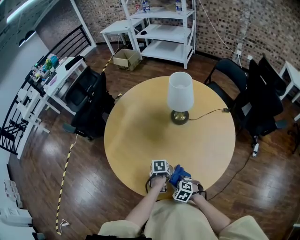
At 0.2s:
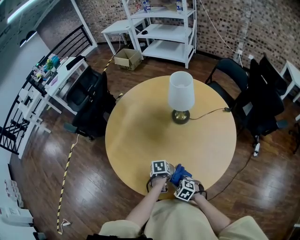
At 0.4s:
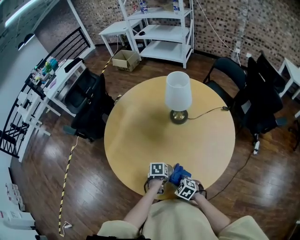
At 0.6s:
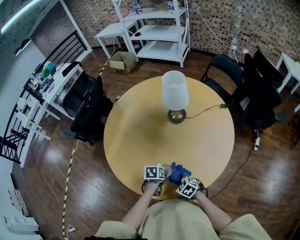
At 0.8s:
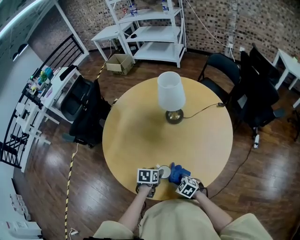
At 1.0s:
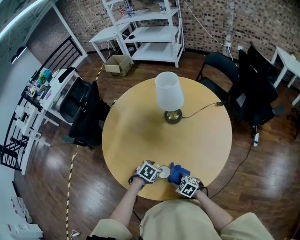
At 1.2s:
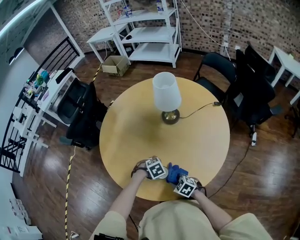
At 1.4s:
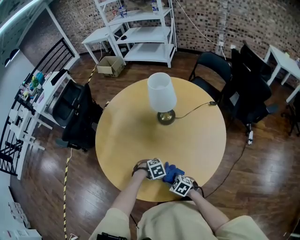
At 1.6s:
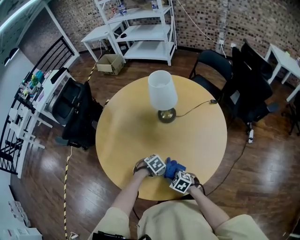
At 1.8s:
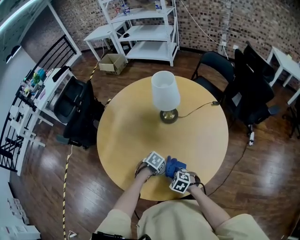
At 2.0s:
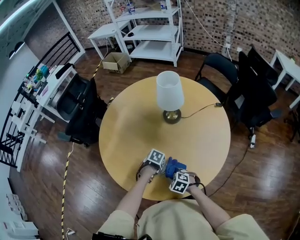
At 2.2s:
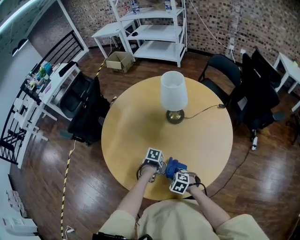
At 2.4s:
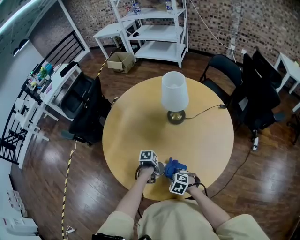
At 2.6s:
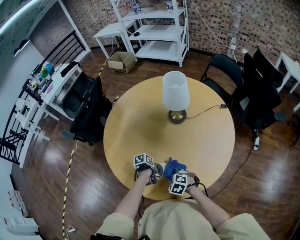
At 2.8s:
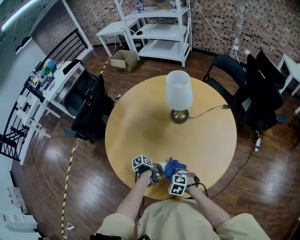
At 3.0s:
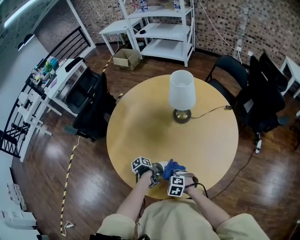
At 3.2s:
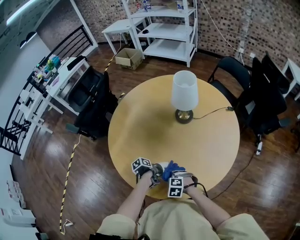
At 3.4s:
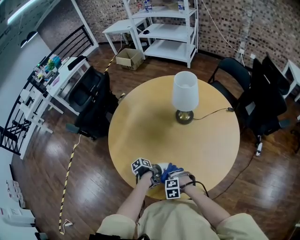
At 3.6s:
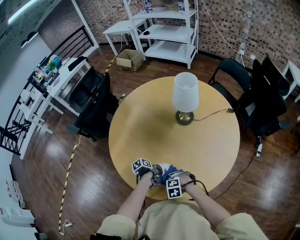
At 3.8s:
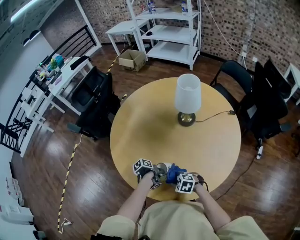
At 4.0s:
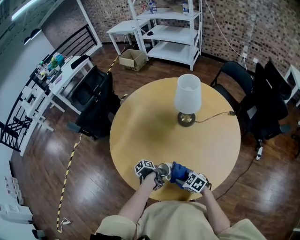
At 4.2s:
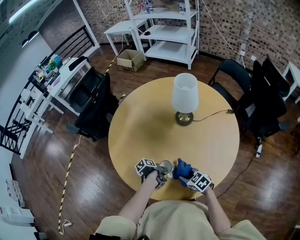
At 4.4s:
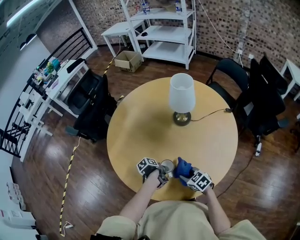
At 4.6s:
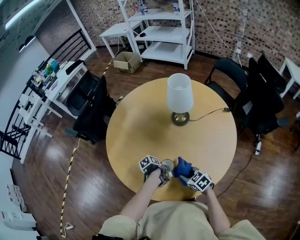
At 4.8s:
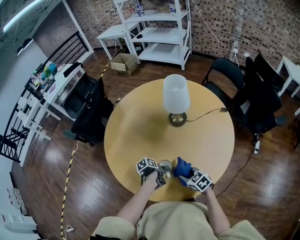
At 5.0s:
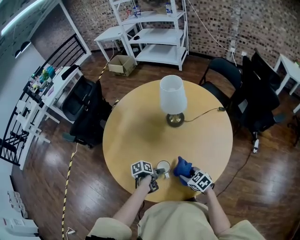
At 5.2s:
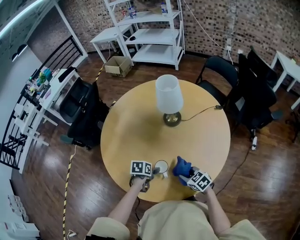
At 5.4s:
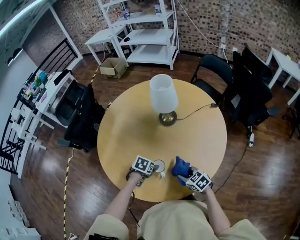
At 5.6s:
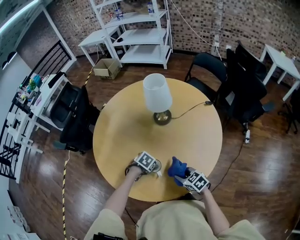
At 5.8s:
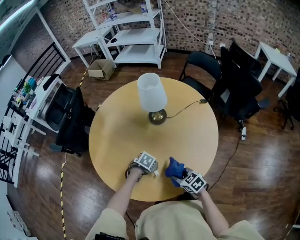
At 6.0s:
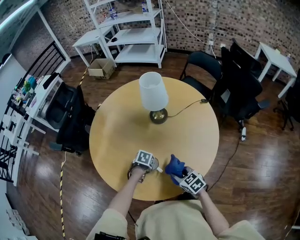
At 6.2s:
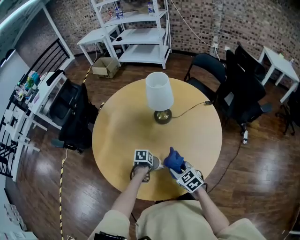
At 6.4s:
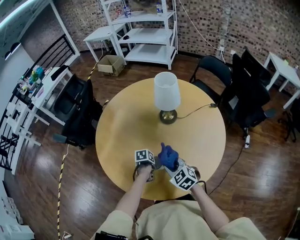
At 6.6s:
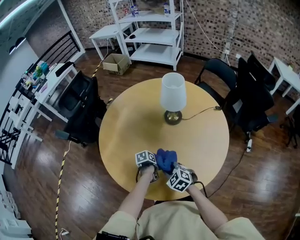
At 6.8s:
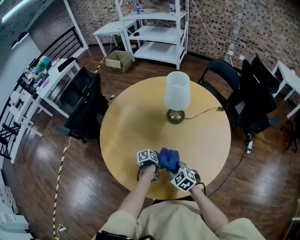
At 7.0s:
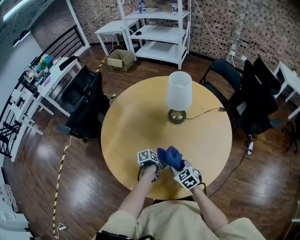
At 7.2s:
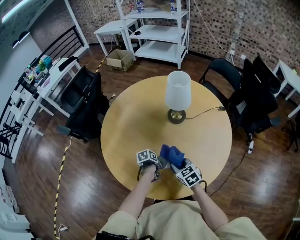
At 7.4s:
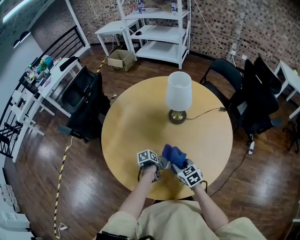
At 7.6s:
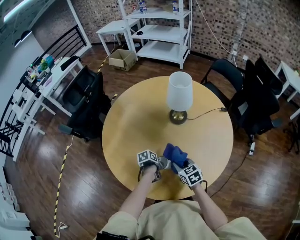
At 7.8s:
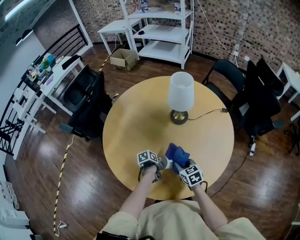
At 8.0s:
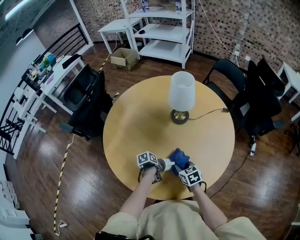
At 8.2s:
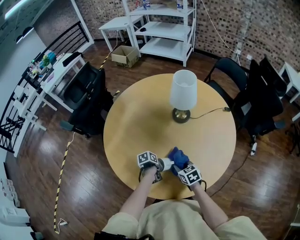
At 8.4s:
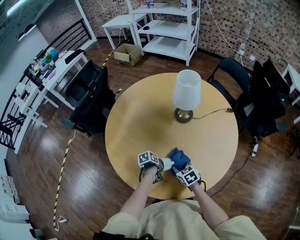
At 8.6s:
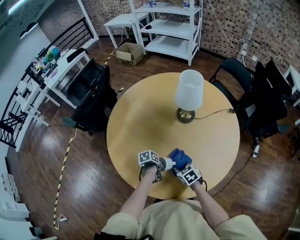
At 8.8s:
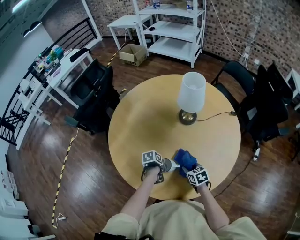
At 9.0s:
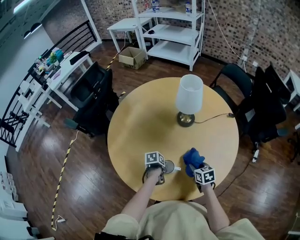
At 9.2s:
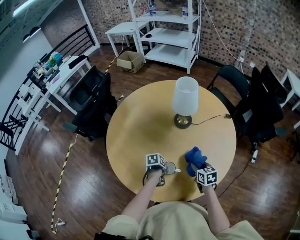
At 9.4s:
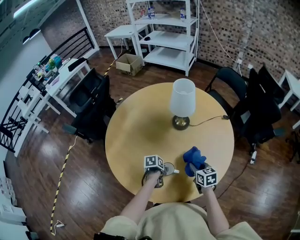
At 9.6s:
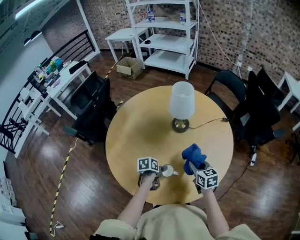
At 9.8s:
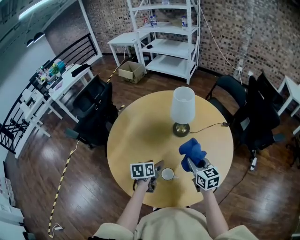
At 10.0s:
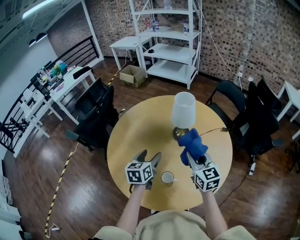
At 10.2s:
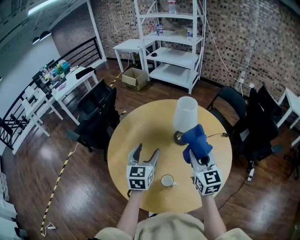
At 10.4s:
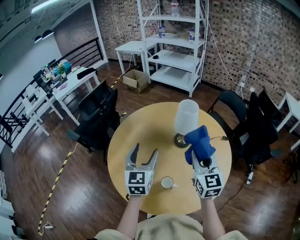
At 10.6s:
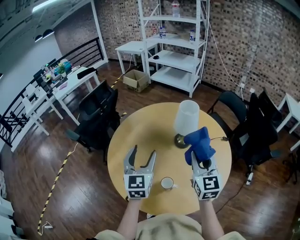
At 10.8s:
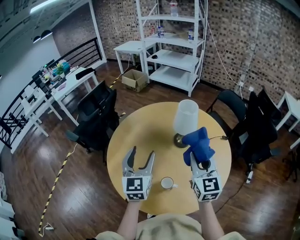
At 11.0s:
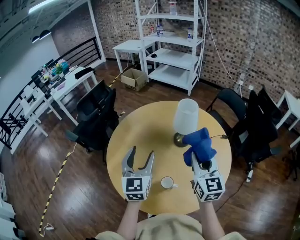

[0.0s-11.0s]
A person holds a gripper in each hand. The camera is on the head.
1.6s to 3.2s: The right gripper ends up roughly 5 cm from where it was, and changes its angle by some 30 degrees.
3.2s to 4.8s: The right gripper ends up some 15 cm from where it was, and rotates around the line of its fingers by about 40 degrees, clockwise from behind.
4.8s to 6.2s: The right gripper shifts approximately 5 cm upward.
6.2s to 7.8s: The right gripper changes place by some 5 cm.
7.8s to 9.4s: The right gripper goes downward and returns, about 5 cm each way.
9.4s to 11.0s: The right gripper moves upward, approximately 30 cm, and tips its fingers upward by about 30 degrees.

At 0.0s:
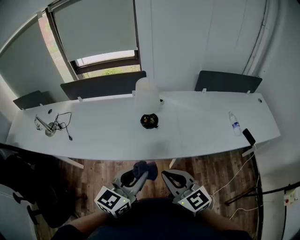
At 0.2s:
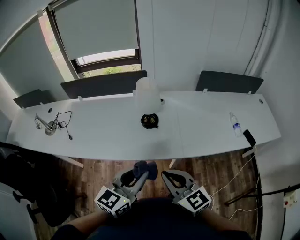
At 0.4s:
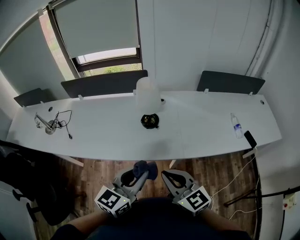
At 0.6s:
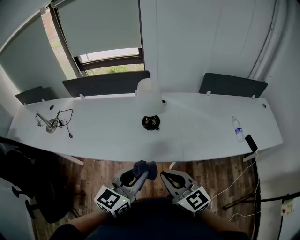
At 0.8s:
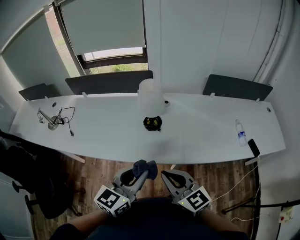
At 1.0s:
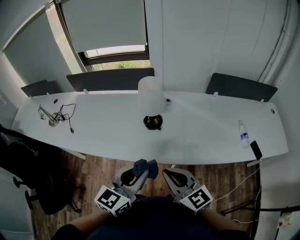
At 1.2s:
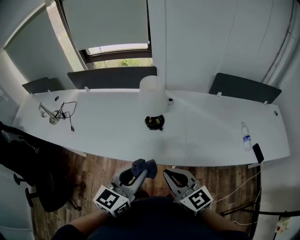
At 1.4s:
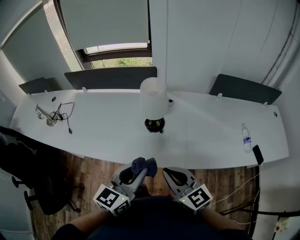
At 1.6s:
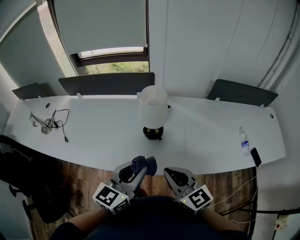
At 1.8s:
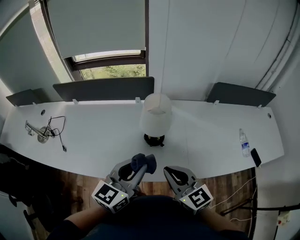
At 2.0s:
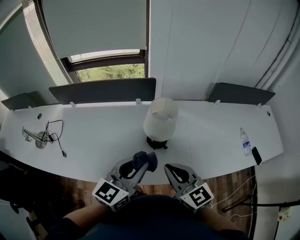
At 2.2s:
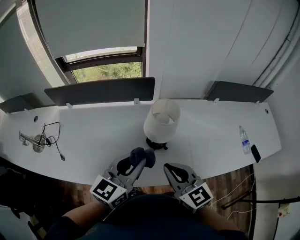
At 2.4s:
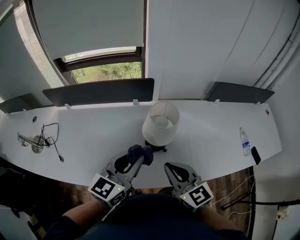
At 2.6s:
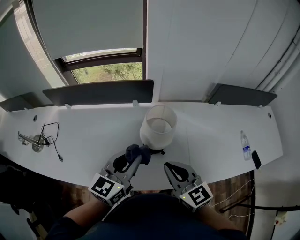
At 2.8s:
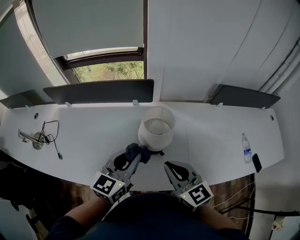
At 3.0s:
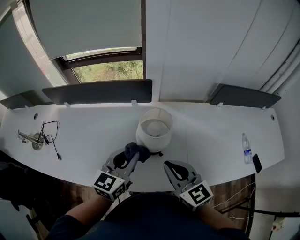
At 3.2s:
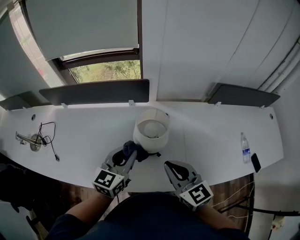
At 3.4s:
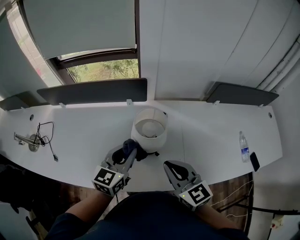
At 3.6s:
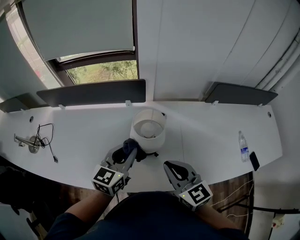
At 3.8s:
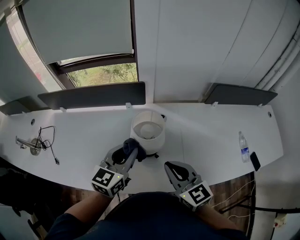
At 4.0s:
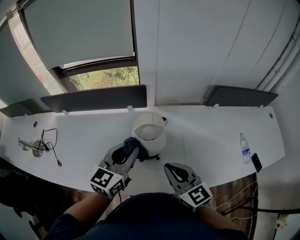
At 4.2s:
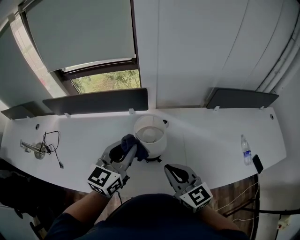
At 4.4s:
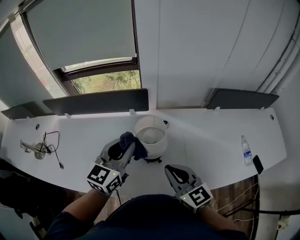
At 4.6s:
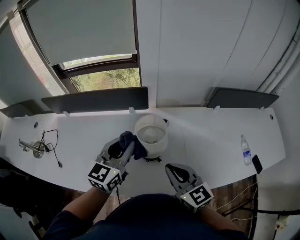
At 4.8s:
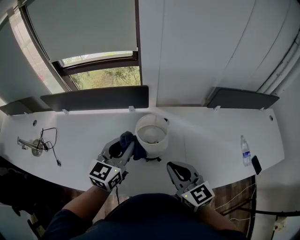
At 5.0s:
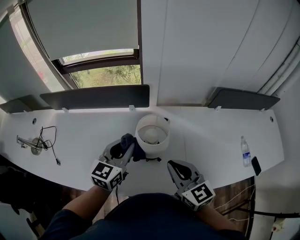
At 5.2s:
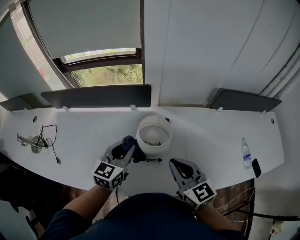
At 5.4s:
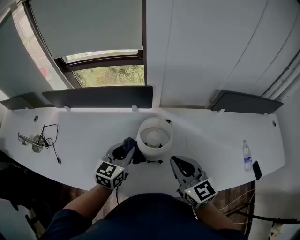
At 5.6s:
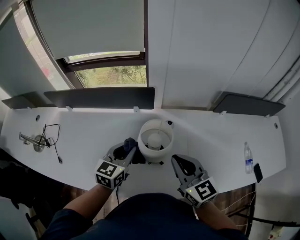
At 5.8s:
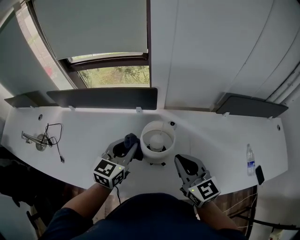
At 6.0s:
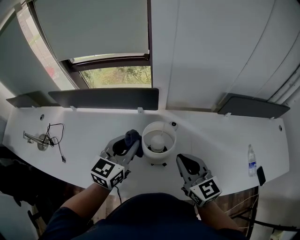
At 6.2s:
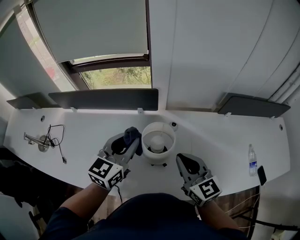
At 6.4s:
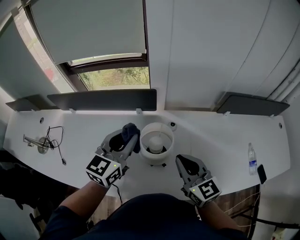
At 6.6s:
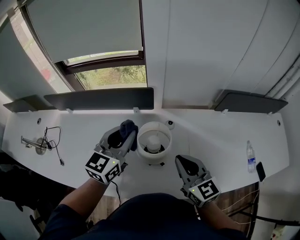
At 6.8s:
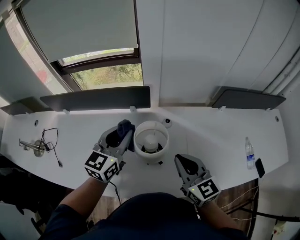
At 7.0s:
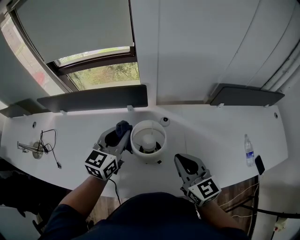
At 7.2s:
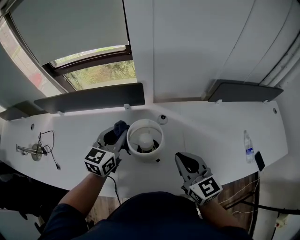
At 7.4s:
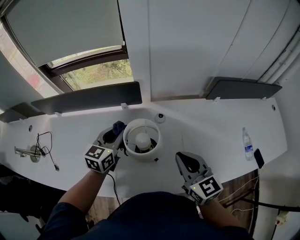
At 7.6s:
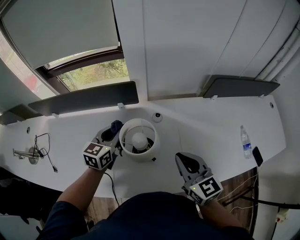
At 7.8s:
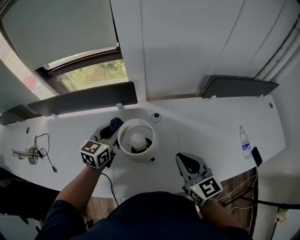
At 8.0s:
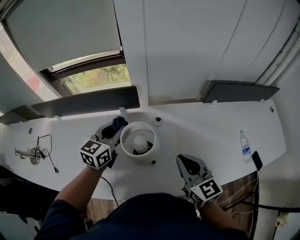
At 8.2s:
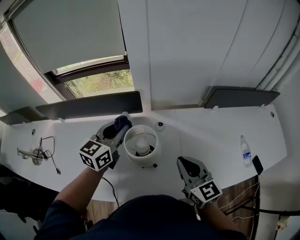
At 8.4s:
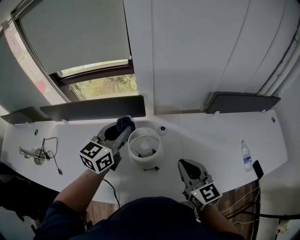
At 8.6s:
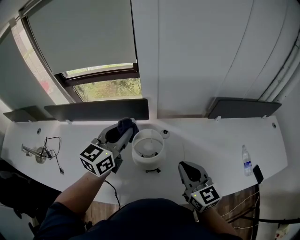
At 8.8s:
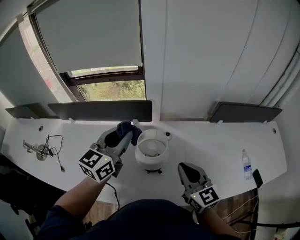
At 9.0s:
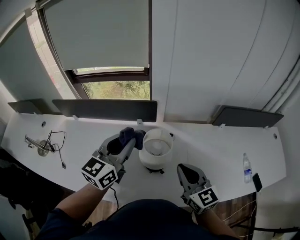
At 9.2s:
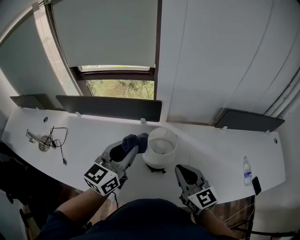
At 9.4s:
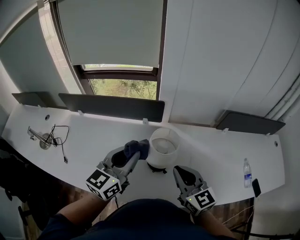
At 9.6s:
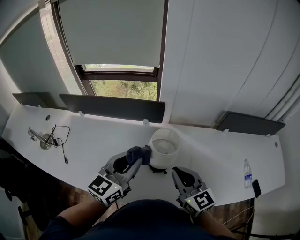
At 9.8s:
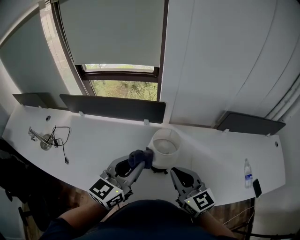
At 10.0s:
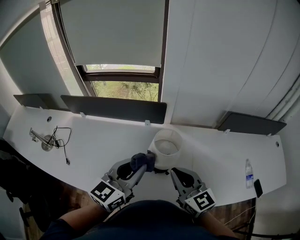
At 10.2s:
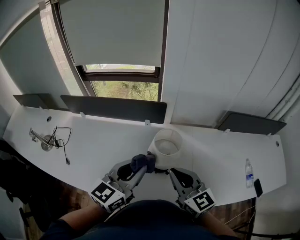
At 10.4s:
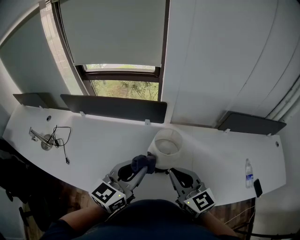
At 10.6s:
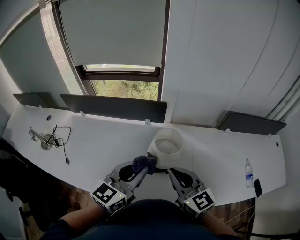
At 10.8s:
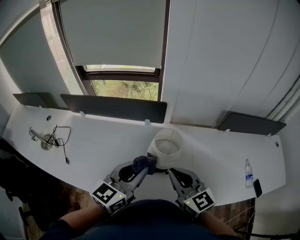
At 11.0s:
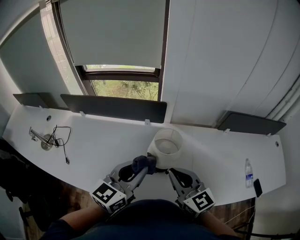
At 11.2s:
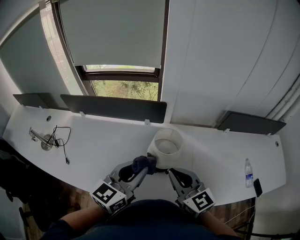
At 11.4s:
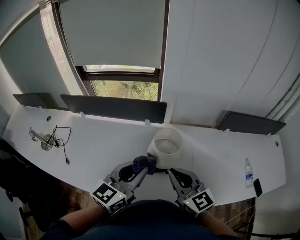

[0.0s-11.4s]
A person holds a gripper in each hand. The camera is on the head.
0.0s to 1.4s: The grippers both shift forward by some 10 cm.
1.4s to 2.8s: The grippers both shift forward by some 20 cm.
2.8s to 4.2s: The left gripper changes place by some 5 cm.
4.2s to 5.6s: The left gripper travels downward by roughly 10 cm. The right gripper moves forward, some 5 cm.
5.6s to 7.2s: The left gripper moves forward, about 5 cm, and travels upward and back again, roughly 10 cm each way. Meanwhile the right gripper ends up some 5 cm from where it was.
7.2s to 8.6s: The left gripper goes about 10 cm upward.
8.6s to 10.0s: The left gripper goes about 15 cm backward; the right gripper moves to the left, about 10 cm.
10.0s to 11.4s: The grippers stay close to where they were, moving slightly.

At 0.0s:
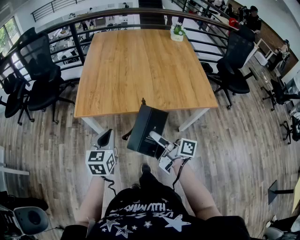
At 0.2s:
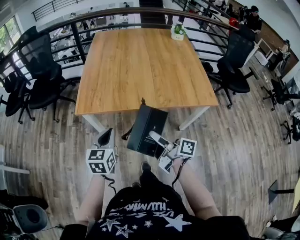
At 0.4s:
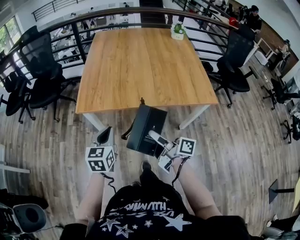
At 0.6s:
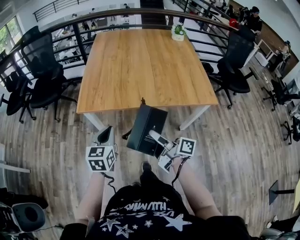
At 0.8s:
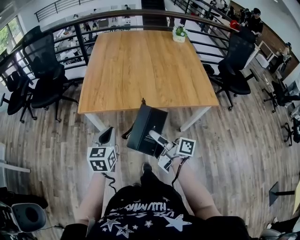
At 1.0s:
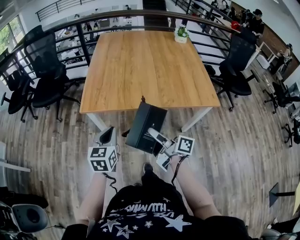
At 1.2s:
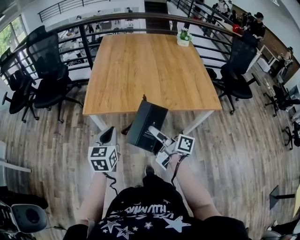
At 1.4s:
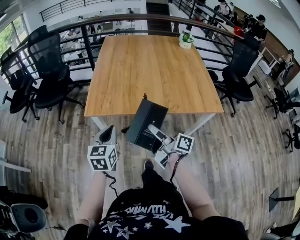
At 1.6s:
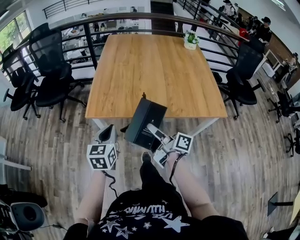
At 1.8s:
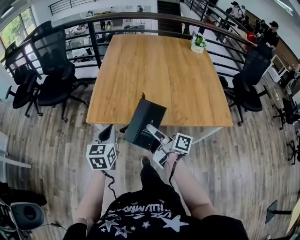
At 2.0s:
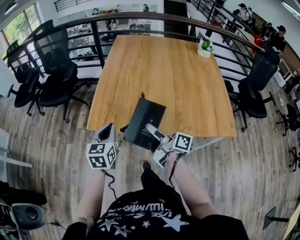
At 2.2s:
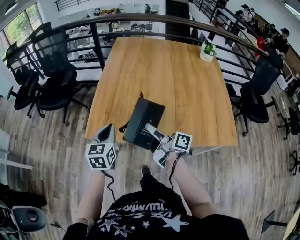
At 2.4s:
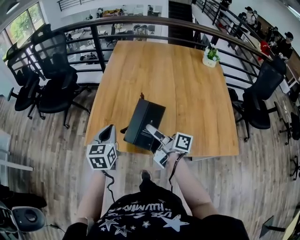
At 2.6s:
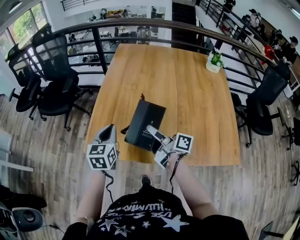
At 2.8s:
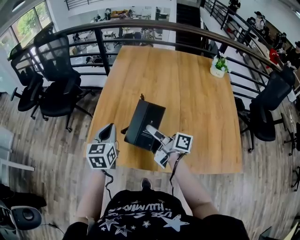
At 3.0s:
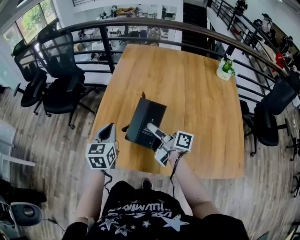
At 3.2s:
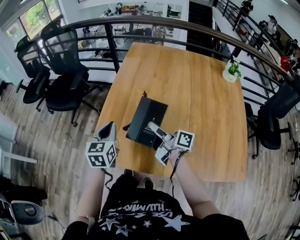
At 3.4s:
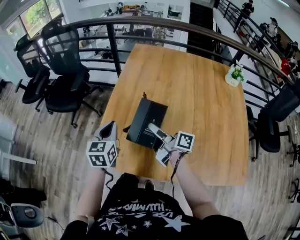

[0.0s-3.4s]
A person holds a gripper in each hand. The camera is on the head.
0.0s to 1.6s: The left gripper is displaced to the left by about 5 cm; the right gripper goes about 10 cm forward and to the left.
1.6s to 3.4s: The grippers both shift forward by approximately 40 cm.
